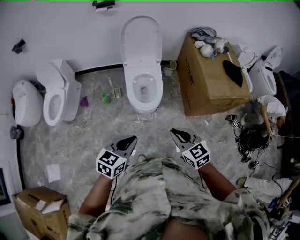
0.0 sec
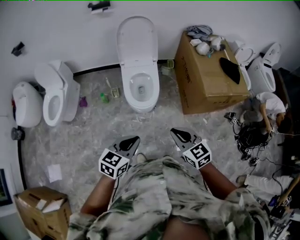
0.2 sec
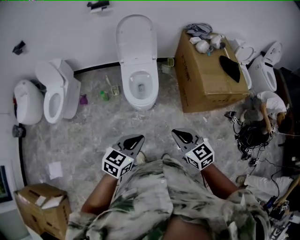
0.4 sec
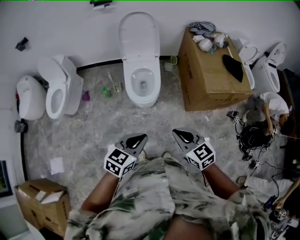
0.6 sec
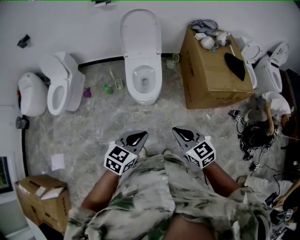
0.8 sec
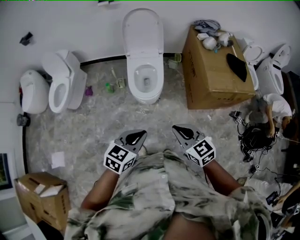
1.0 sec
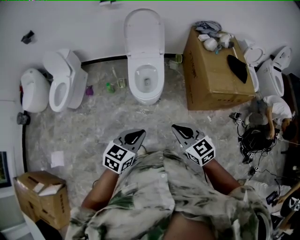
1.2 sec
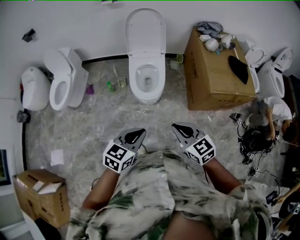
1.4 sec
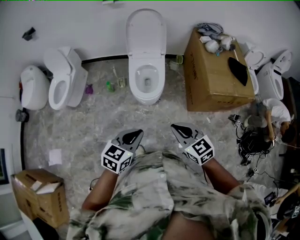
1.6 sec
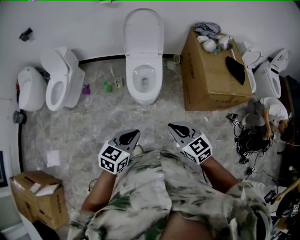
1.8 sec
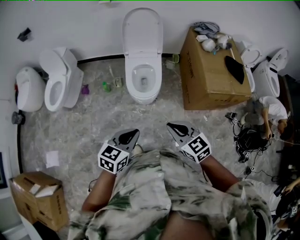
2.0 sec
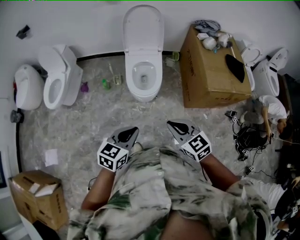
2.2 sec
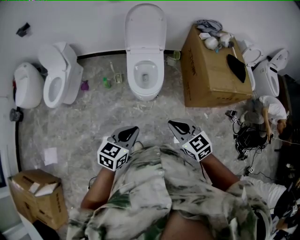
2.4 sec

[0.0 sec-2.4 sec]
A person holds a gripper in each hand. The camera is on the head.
0.0 sec to 1.2 sec: The right gripper shifts some 5 cm to the right. The left gripper goes some 10 cm to the right.
1.2 sec to 2.4 sec: The two grippers go roughly 5 cm to the left.

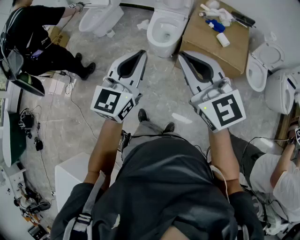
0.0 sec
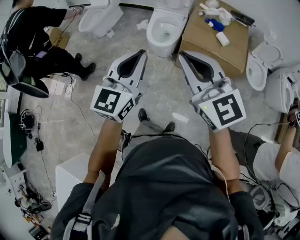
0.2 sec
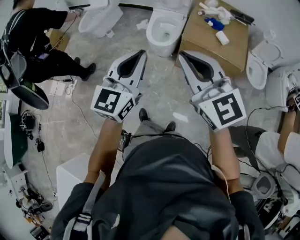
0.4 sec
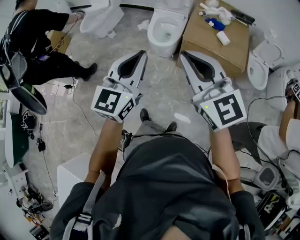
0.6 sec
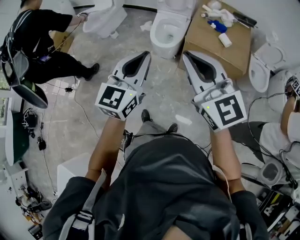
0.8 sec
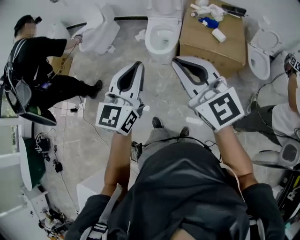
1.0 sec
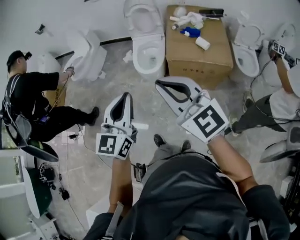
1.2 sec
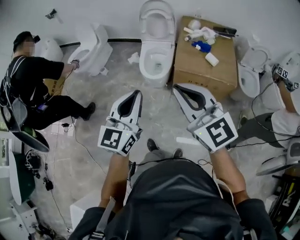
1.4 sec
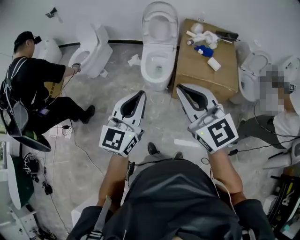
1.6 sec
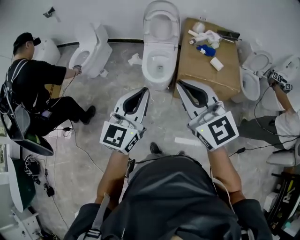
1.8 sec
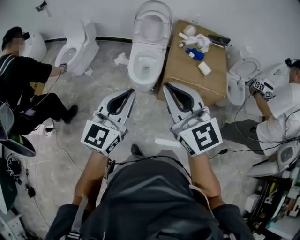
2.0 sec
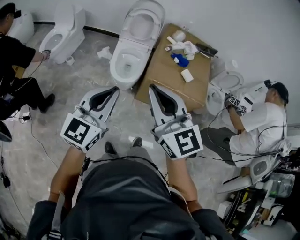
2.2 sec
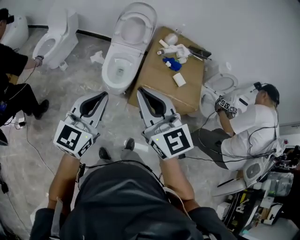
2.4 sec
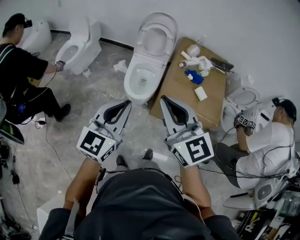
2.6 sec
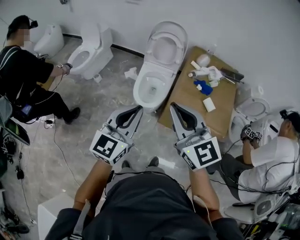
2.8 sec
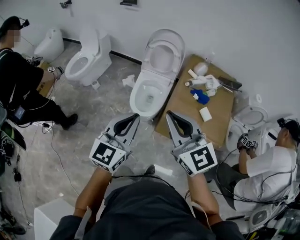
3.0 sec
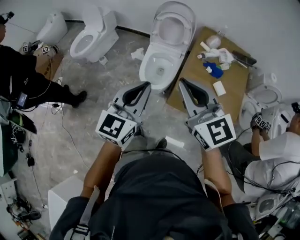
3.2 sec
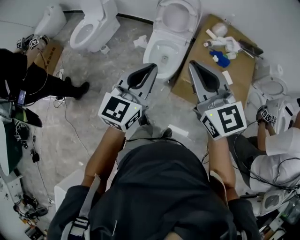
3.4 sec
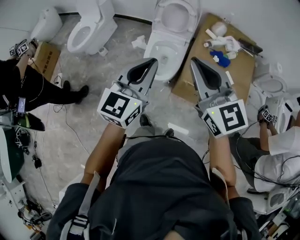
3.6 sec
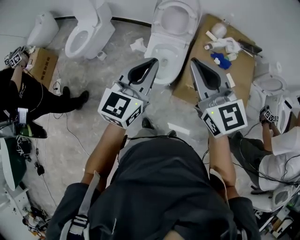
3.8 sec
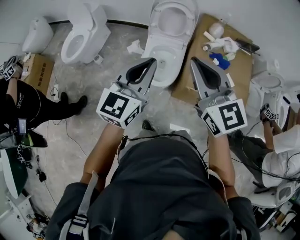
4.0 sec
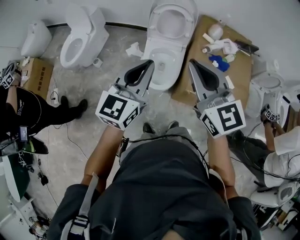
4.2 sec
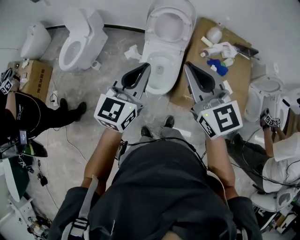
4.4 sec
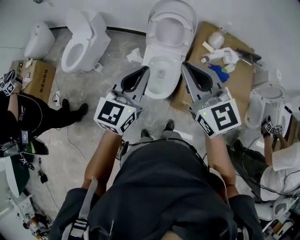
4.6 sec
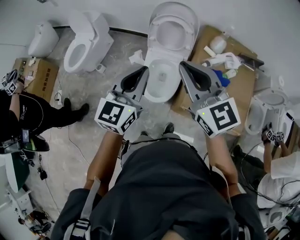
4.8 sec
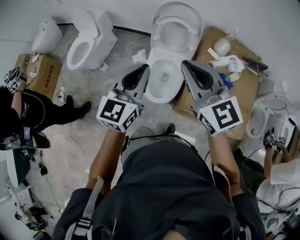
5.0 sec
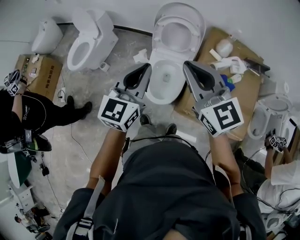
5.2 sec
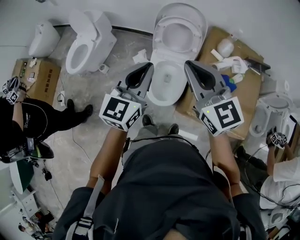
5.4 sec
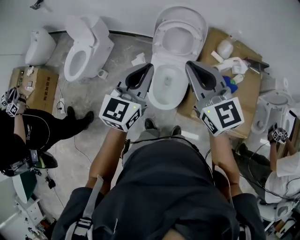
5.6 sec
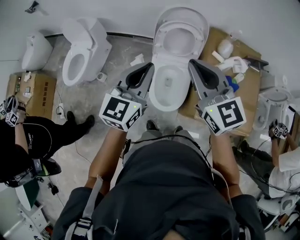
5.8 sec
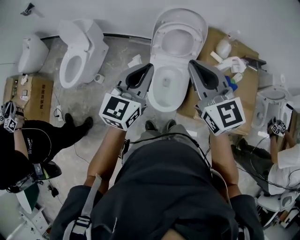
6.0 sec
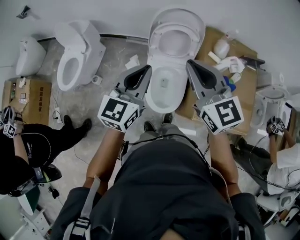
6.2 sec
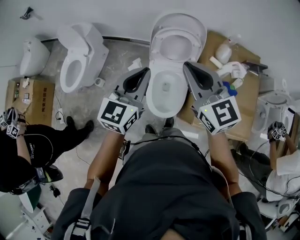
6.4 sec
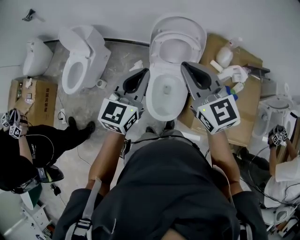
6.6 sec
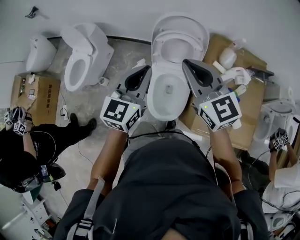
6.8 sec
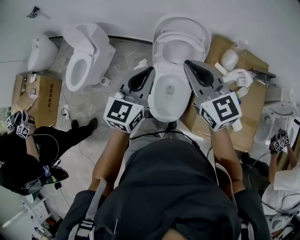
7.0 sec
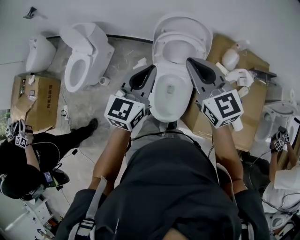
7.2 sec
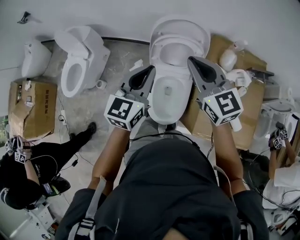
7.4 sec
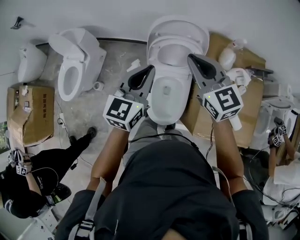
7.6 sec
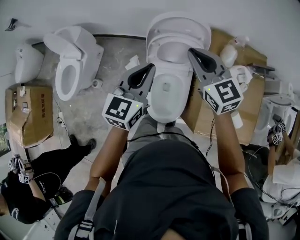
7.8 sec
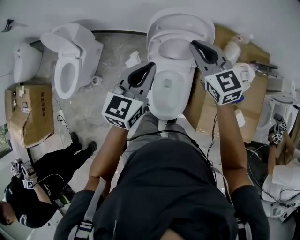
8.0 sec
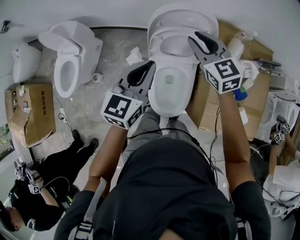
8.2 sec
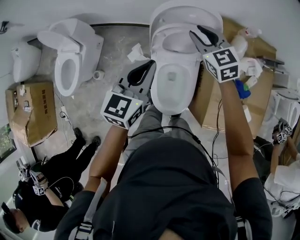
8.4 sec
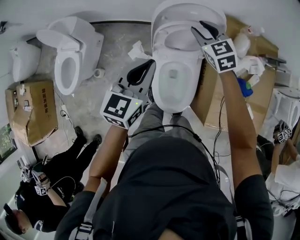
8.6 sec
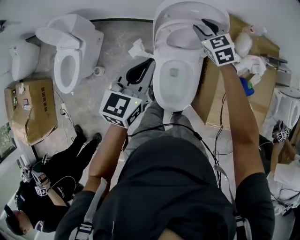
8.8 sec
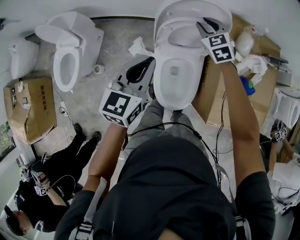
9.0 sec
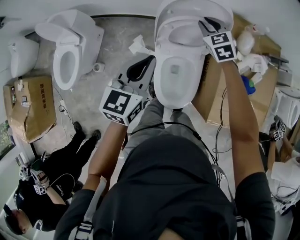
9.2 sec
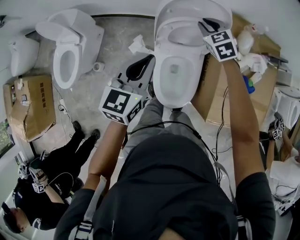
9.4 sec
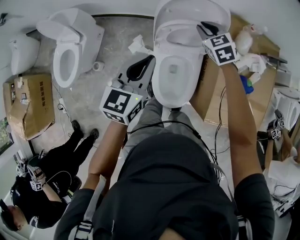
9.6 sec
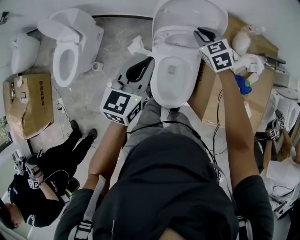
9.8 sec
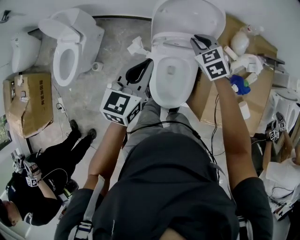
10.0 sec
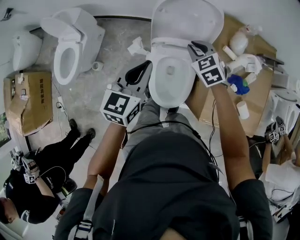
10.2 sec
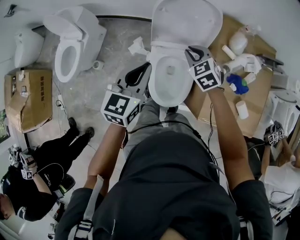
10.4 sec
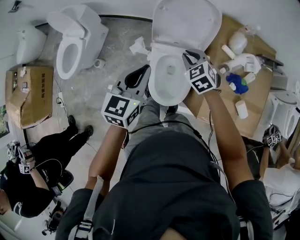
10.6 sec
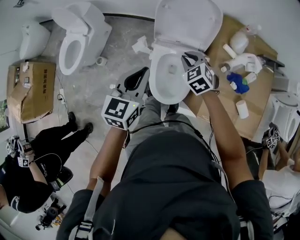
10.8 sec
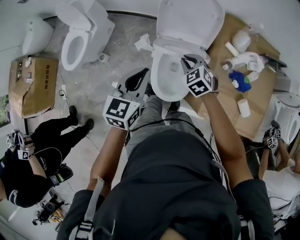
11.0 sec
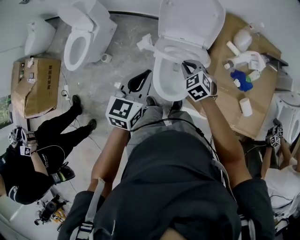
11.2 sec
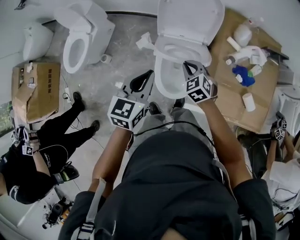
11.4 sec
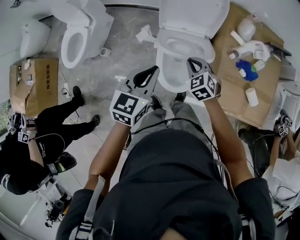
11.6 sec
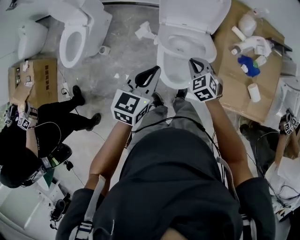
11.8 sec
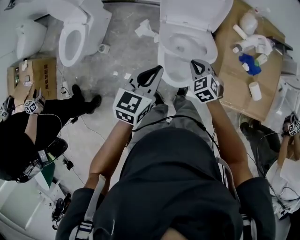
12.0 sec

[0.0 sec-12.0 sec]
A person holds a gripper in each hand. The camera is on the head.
0.0 sec to 1.6 sec: Both grippers move forward, approximately 5 cm.
1.6 sec to 3.0 sec: The two grippers go about 15 cm forward.
3.0 sec to 4.4 sec: The grippers both shift forward by some 20 cm.
4.4 sec to 6.0 sec: Both grippers move forward, roughly 20 cm.
6.0 sec to 7.6 sec: The grippers both shift forward by some 20 cm.
7.6 sec to 9.0 sec: The left gripper shifts approximately 10 cm downward and to the left. The right gripper shifts roughly 30 cm downward and forward, swivels roughly 30 degrees, and opens up.
9.0 sec to 10.4 sec: The right gripper goes some 15 cm backward. The left gripper goes some 10 cm backward.
10.4 sec to 12.0 sec: Both grippers move backward and downward, about 15 cm.

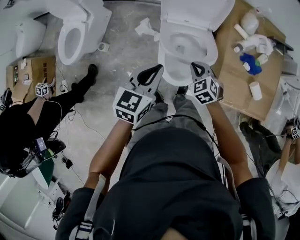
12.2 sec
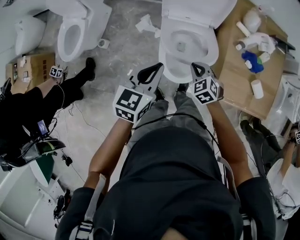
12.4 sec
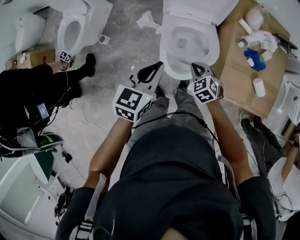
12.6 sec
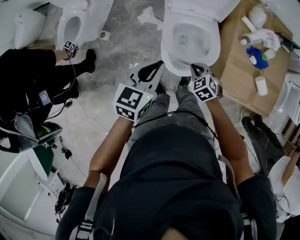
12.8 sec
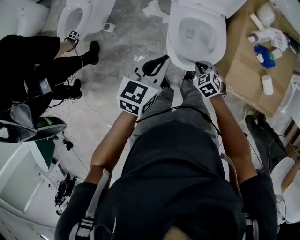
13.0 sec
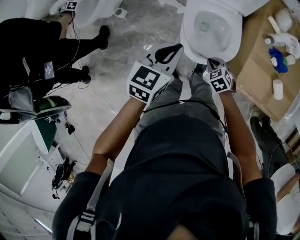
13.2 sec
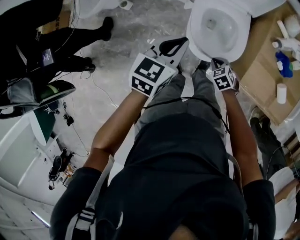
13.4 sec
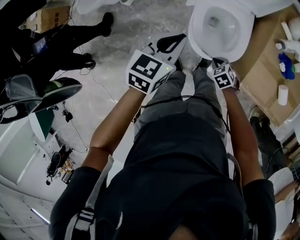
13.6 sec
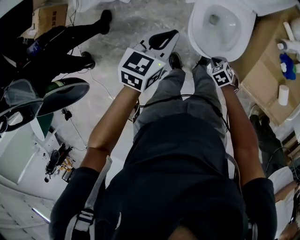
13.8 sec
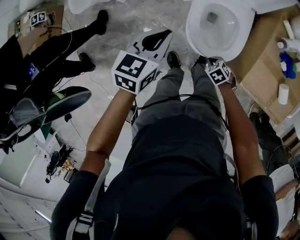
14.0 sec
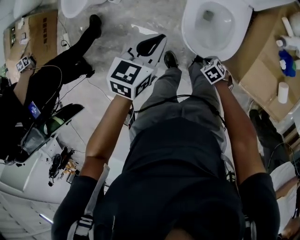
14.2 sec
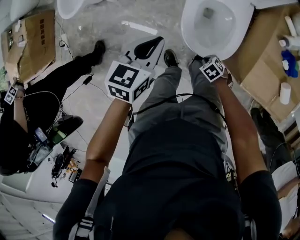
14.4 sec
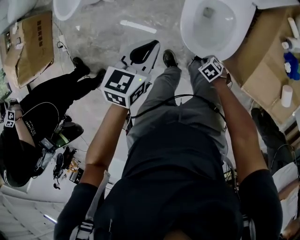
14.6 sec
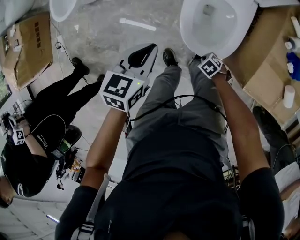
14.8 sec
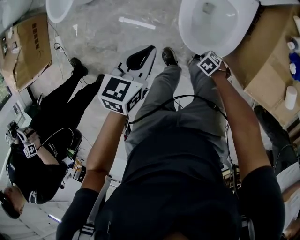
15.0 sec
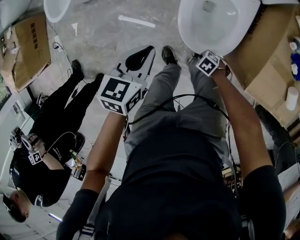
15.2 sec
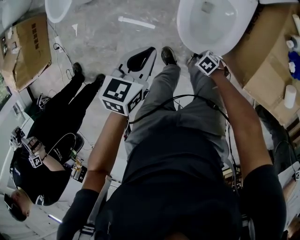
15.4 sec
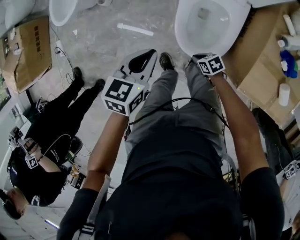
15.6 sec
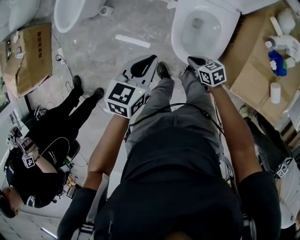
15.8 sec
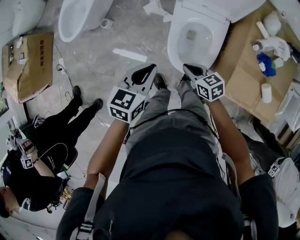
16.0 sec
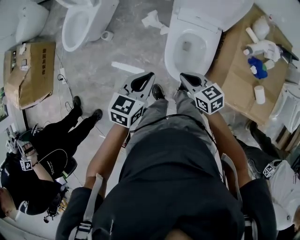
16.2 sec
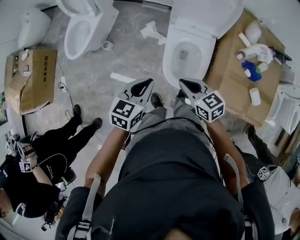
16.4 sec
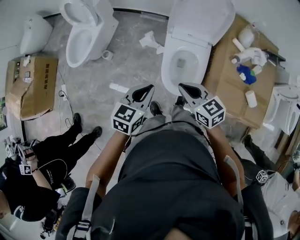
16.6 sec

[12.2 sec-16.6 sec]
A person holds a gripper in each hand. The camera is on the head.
12.2 sec to 13.6 sec: The right gripper shifts roughly 20 cm downward and backward, and turns by some 30 degrees, while the left gripper heads downward and to the left, covering roughly 10 cm.
13.6 sec to 15.2 sec: Both grippers move downward, approximately 15 cm. The right gripper rotates roughly 30 degrees.
15.2 sec to 16.6 sec: The right gripper shifts roughly 50 cm upward, and angles its fingers upward, by roughly 40 degrees. The left gripper moves upward, about 20 cm.
